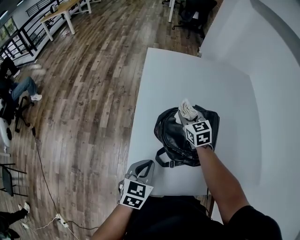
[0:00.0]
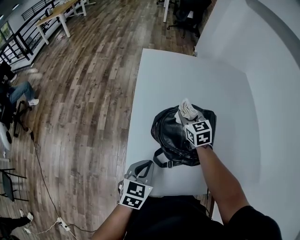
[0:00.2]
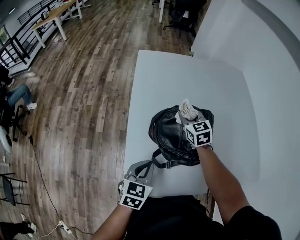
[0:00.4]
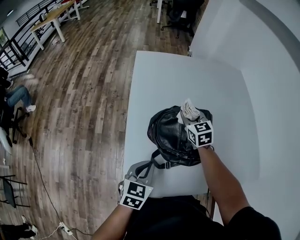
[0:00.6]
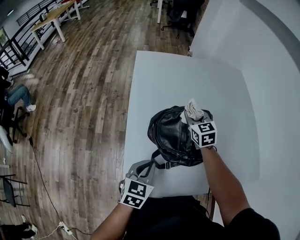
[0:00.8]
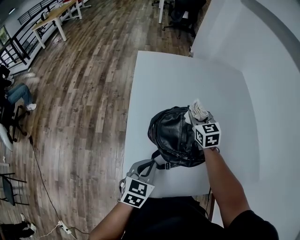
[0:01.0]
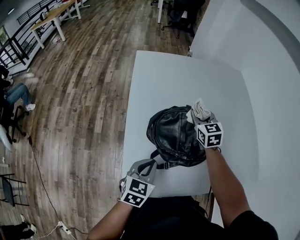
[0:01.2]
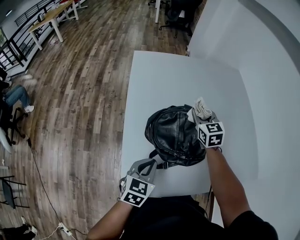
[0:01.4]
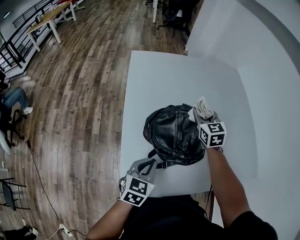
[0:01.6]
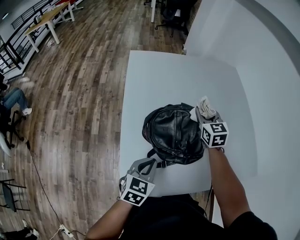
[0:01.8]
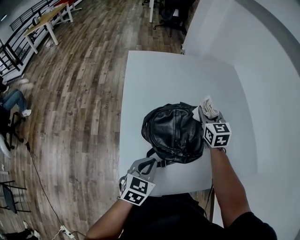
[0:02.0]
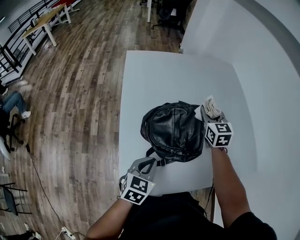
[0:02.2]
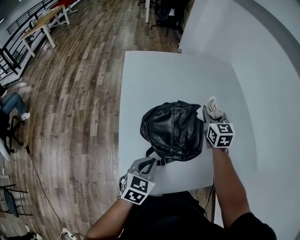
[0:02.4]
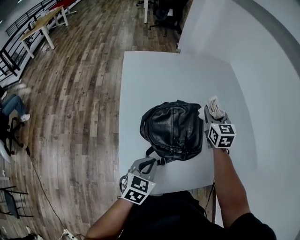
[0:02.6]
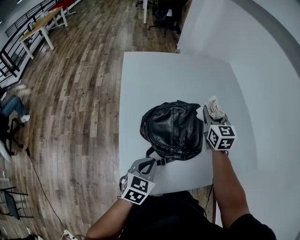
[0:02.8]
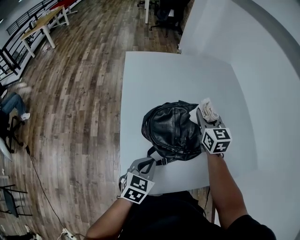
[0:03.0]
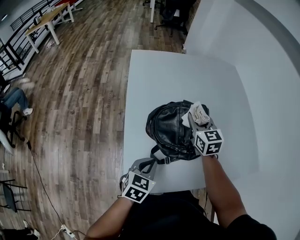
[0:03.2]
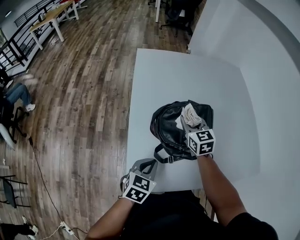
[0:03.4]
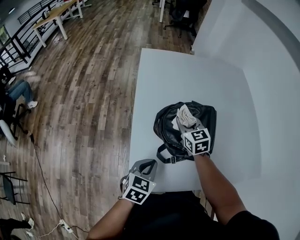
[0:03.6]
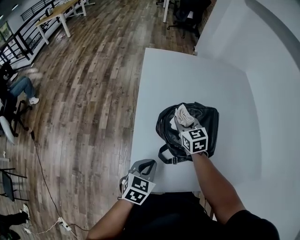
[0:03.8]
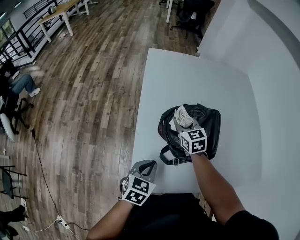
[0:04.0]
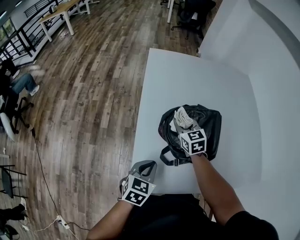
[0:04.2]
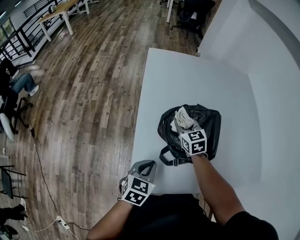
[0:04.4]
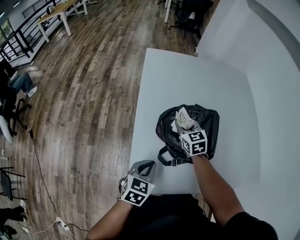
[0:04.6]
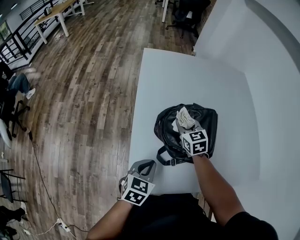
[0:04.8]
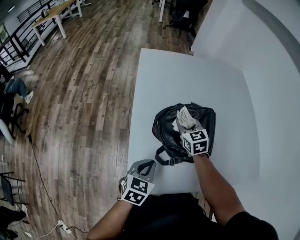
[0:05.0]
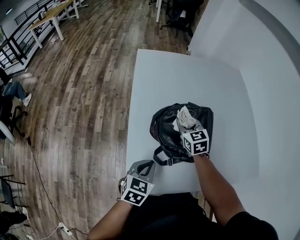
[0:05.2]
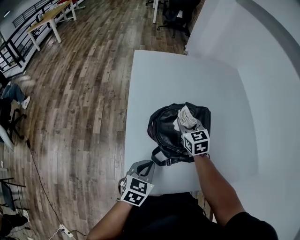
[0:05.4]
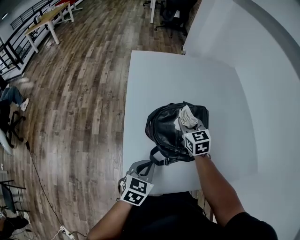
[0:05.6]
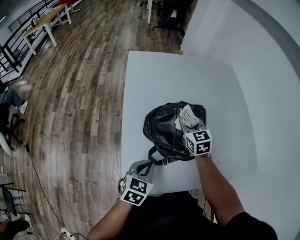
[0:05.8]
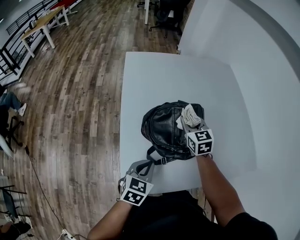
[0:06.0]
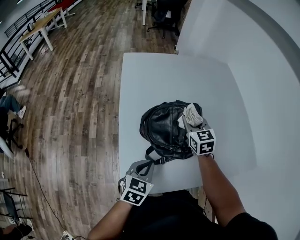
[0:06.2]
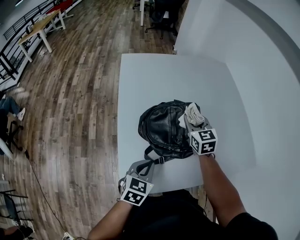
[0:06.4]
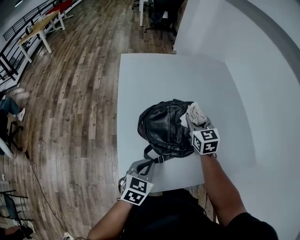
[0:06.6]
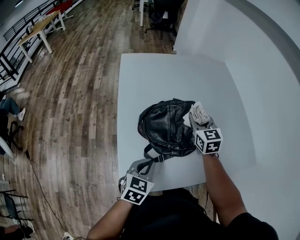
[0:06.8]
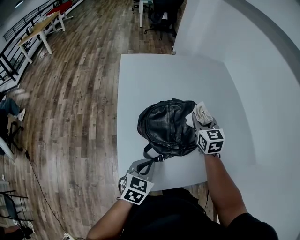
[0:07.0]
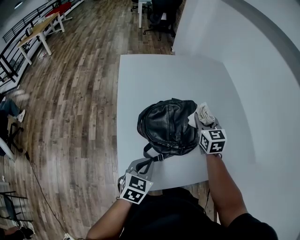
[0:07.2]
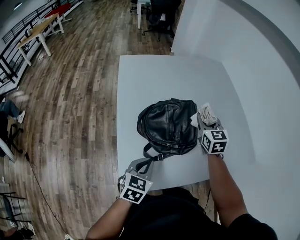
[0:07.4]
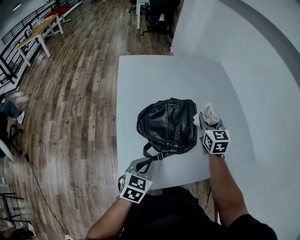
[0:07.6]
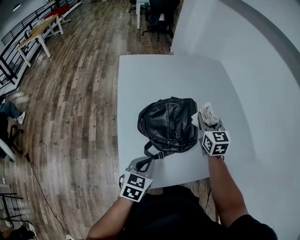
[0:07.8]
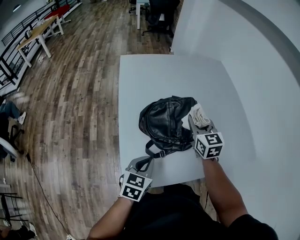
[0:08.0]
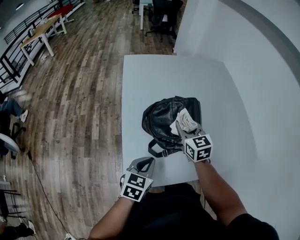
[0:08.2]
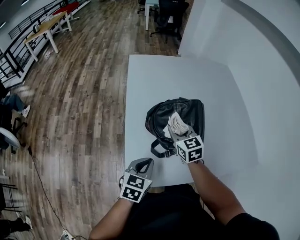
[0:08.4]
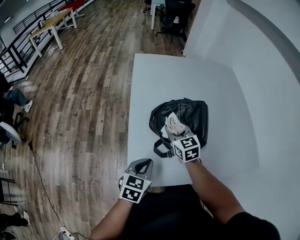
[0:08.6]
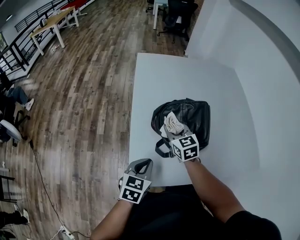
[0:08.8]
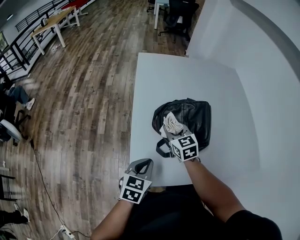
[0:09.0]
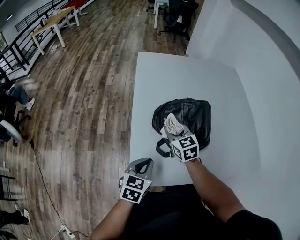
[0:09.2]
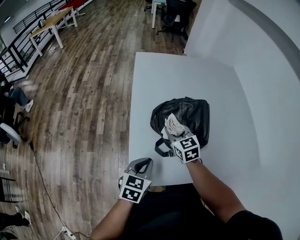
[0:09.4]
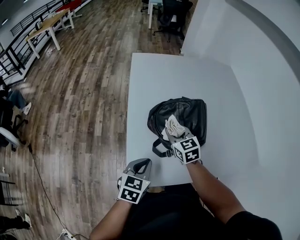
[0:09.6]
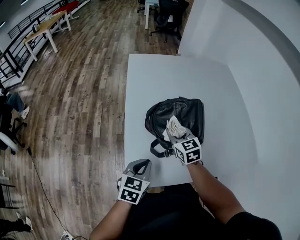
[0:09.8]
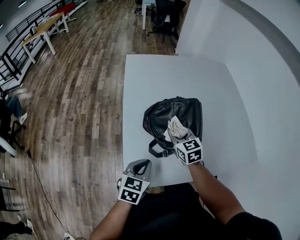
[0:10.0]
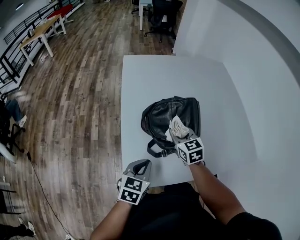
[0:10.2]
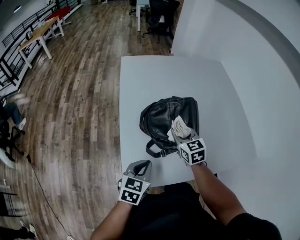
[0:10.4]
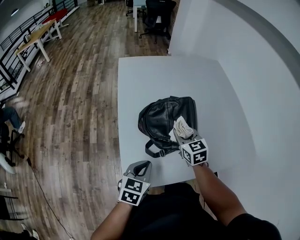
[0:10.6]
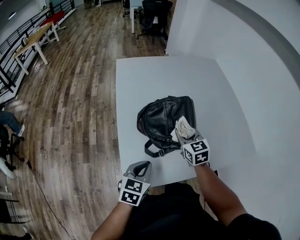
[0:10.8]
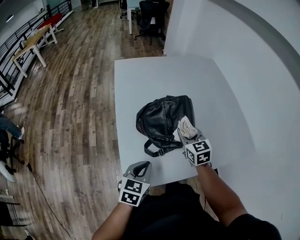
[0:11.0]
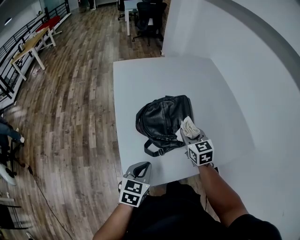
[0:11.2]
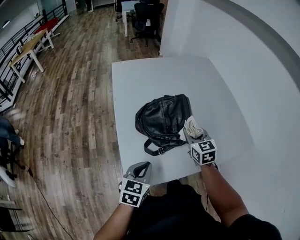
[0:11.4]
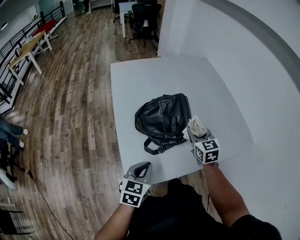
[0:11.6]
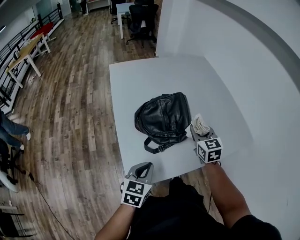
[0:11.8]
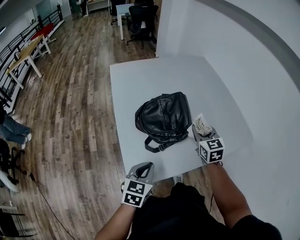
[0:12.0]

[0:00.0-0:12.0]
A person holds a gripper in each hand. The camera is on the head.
0:00.0 to 0:01.6: The right gripper moves to the right and upward, some 15 cm, while the left gripper shifts by about 5 cm.
0:01.6 to 0:03.0: The right gripper ends up about 5 cm from where it was.
0:03.0 to 0:04.4: The left gripper shifts approximately 5 cm to the left, while the right gripper heads to the left and downward, covering some 20 cm, and rotates some 20 degrees.
0:04.4 to 0:06.0: The left gripper changes place by approximately 5 cm, while the right gripper goes approximately 10 cm to the right and upward.
0:06.0 to 0:07.6: The right gripper travels to the right and upward by approximately 15 cm.
0:07.6 to 0:09.0: The right gripper goes approximately 25 cm to the left, and turns by about 30 degrees, while the left gripper travels to the left by some 5 cm.
0:09.0 to 0:10.4: The right gripper shifts some 10 cm to the right.
0:10.4 to 0:12.0: The right gripper goes some 15 cm to the right and upward, while the left gripper changes place by roughly 5 cm.

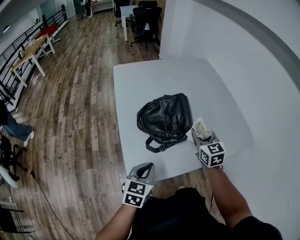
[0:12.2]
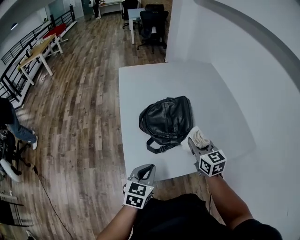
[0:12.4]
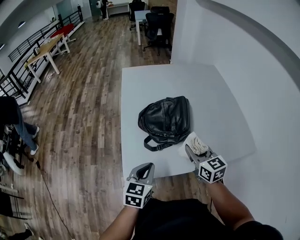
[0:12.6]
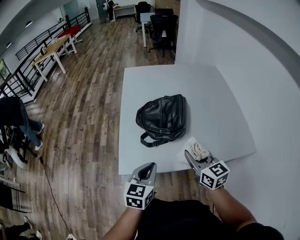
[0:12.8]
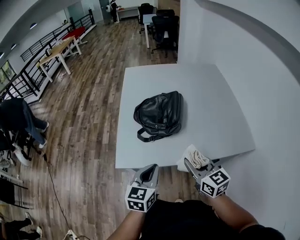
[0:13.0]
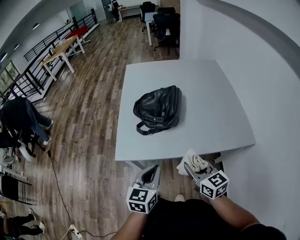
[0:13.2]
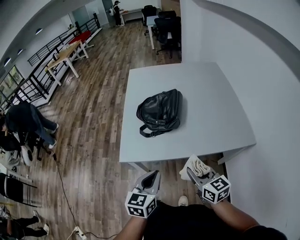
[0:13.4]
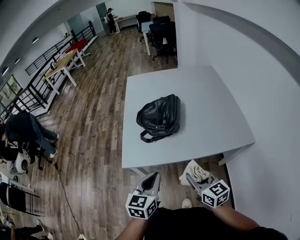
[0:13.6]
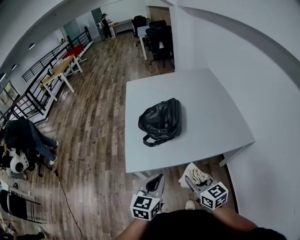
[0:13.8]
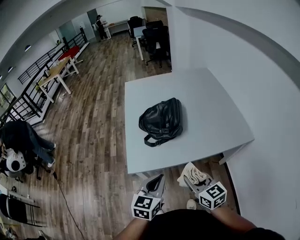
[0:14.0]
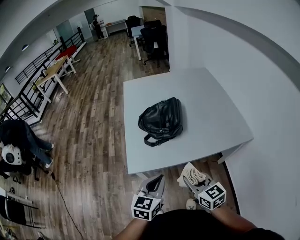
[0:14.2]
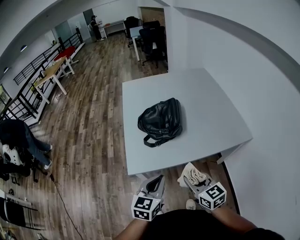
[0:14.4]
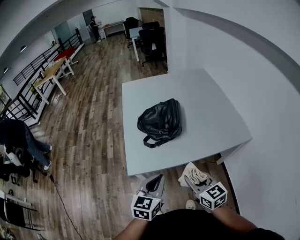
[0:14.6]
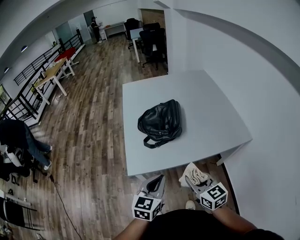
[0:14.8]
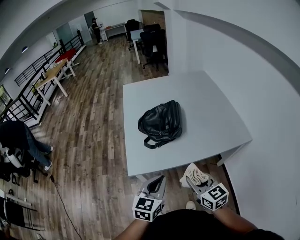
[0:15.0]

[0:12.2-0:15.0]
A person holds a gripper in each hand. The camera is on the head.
0:12.2 to 0:13.6: The right gripper shifts by roughly 30 cm, and turns by some 30 degrees, while the left gripper changes place by roughly 25 cm, and swivels roughly 20 degrees.
0:13.6 to 0:15.0: The right gripper moves to the left, approximately 5 cm.

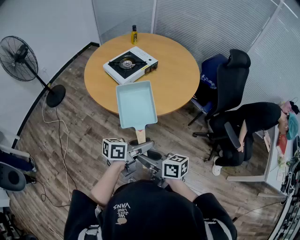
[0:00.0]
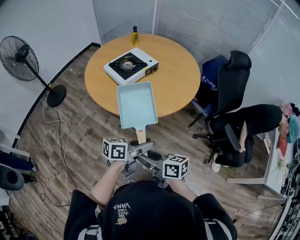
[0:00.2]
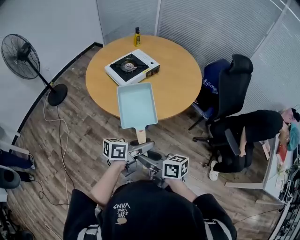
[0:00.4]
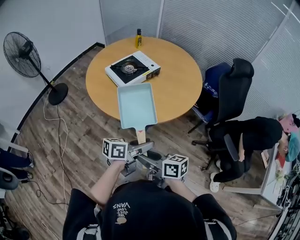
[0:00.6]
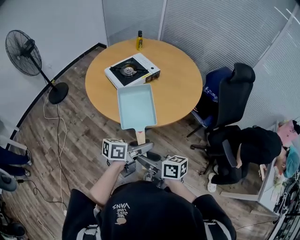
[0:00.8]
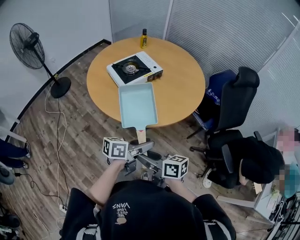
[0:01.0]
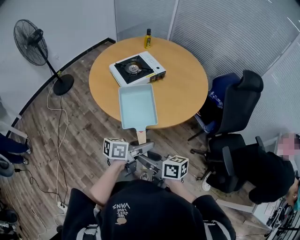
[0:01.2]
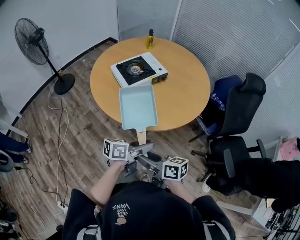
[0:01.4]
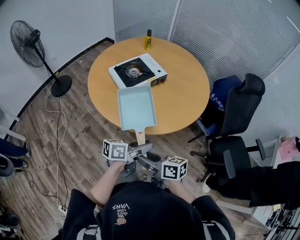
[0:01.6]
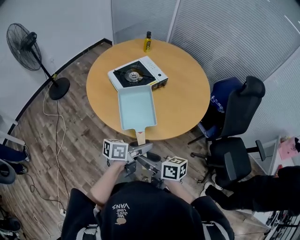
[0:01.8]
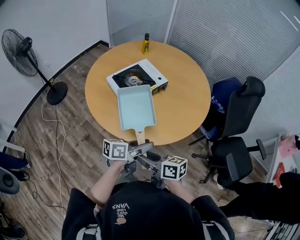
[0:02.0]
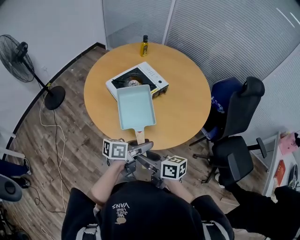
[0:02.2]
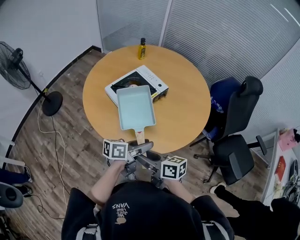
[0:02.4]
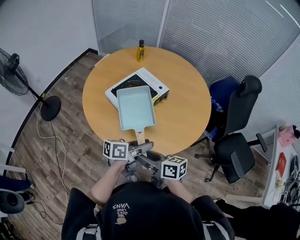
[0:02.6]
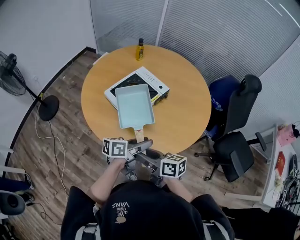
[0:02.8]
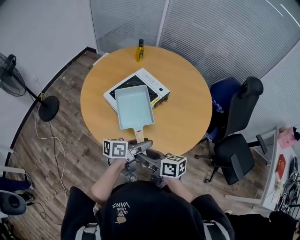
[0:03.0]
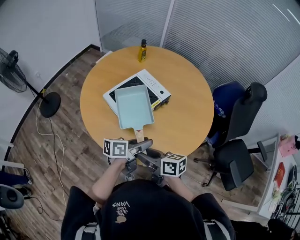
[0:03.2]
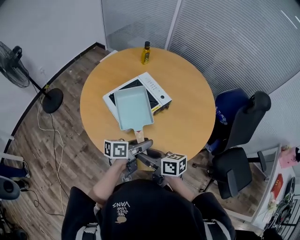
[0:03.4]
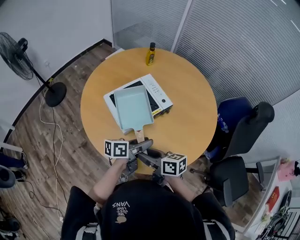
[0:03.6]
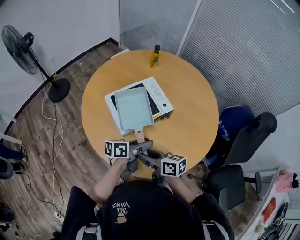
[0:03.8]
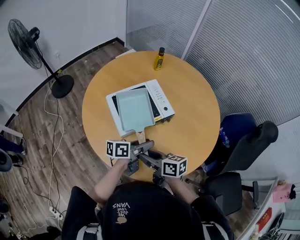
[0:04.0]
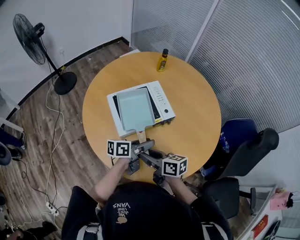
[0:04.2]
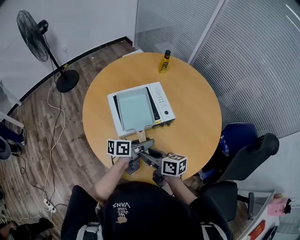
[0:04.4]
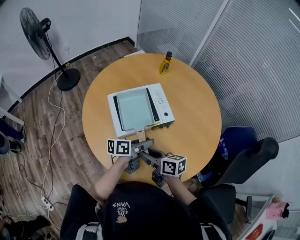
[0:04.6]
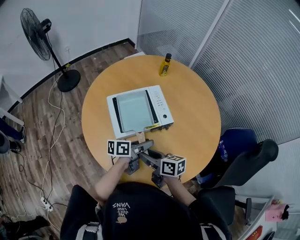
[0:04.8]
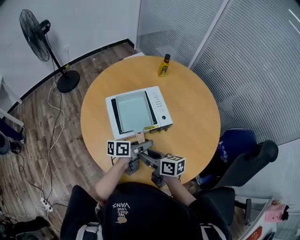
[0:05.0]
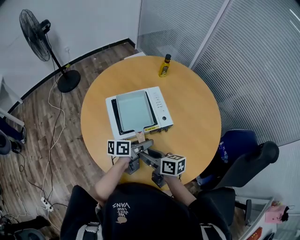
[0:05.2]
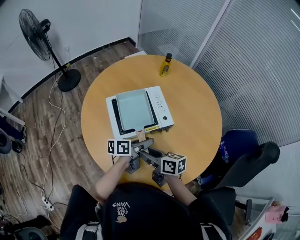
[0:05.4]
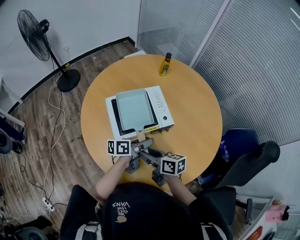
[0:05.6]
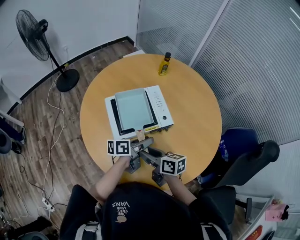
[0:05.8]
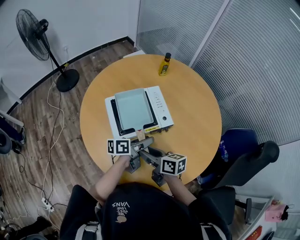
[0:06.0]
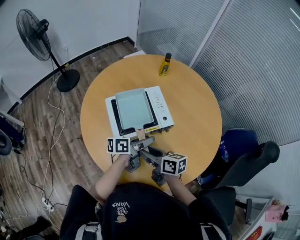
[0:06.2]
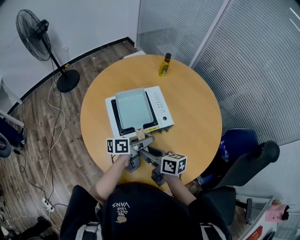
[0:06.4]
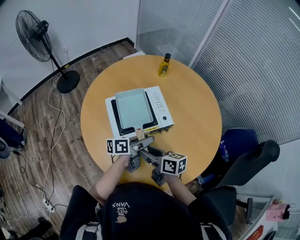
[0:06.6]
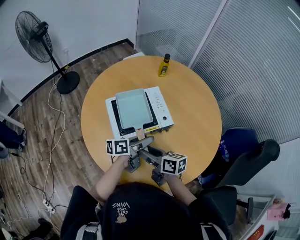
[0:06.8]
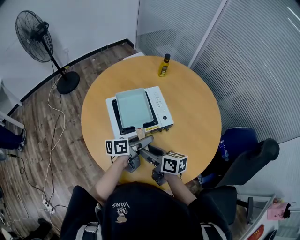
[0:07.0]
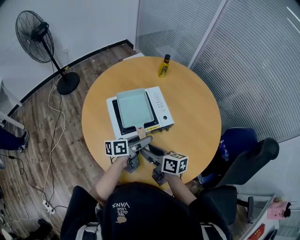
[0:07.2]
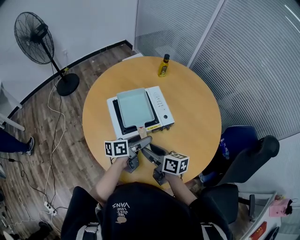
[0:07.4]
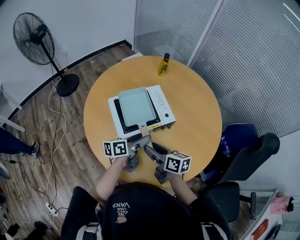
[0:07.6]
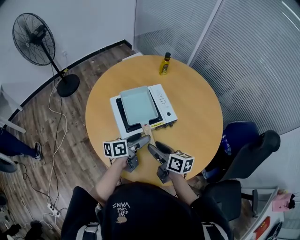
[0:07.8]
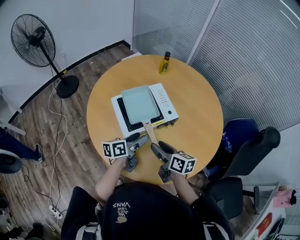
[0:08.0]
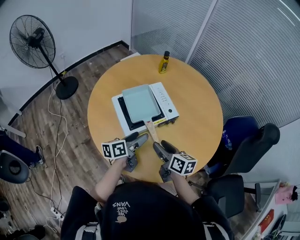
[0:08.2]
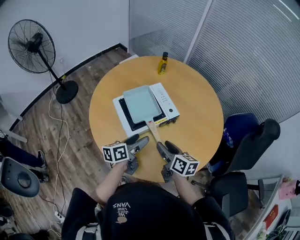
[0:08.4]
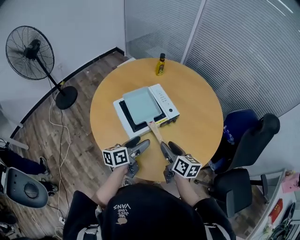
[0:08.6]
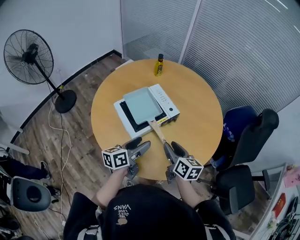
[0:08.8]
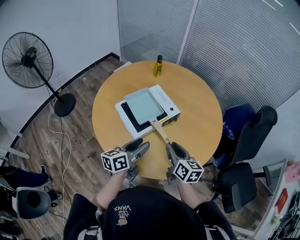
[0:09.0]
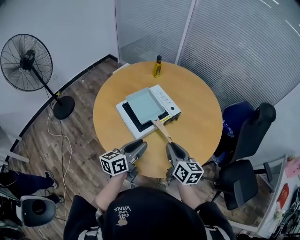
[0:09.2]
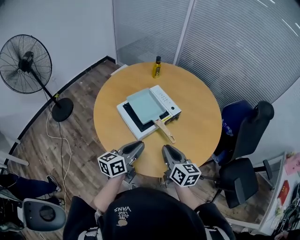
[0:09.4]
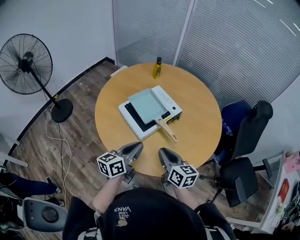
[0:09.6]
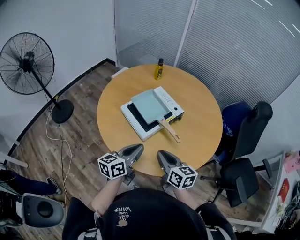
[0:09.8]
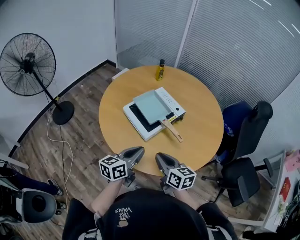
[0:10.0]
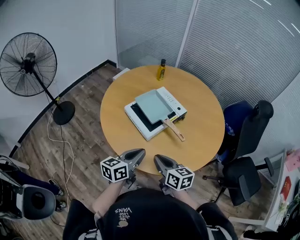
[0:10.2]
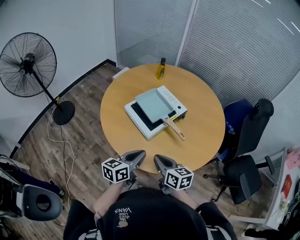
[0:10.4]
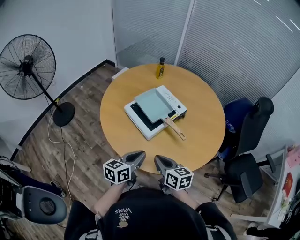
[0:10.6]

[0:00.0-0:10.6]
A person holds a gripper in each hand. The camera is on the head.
0:00.0 to 0:01.6: The two grippers go roughly 10 cm forward.
0:01.6 to 0:03.0: Both grippers travel together forward and to the left, roughly 20 cm.
0:03.0 to 0:04.6: The grippers both shift forward and to the right by roughly 15 cm. The right gripper changes its angle by some 20 degrees. The left gripper swivels approximately 30 degrees.
0:04.6 to 0:06.0: The grippers move only a little.
0:06.0 to 0:07.6: The left gripper opens.
0:07.6 to 0:09.0: The right gripper ends up approximately 5 cm from where it was, and changes its angle by some 40 degrees. The left gripper moves backward, to the left and upward, some 10 cm.
0:09.0 to 0:10.6: The right gripper moves to the left and backward, some 15 cm, and closes up. The left gripper heads backward and to the left, covering some 10 cm, and closes its fingers.
